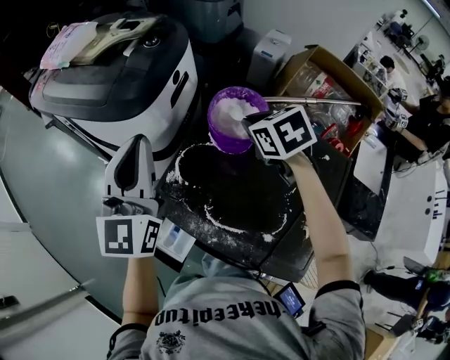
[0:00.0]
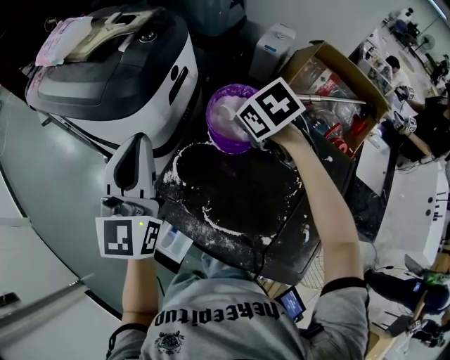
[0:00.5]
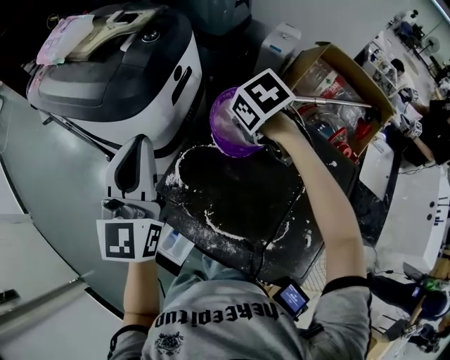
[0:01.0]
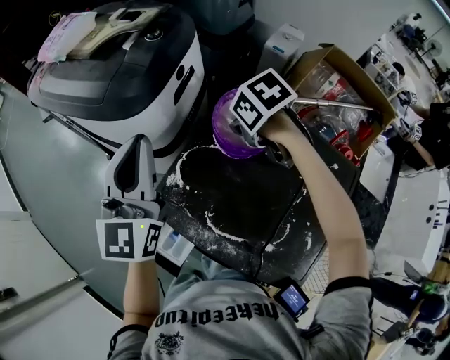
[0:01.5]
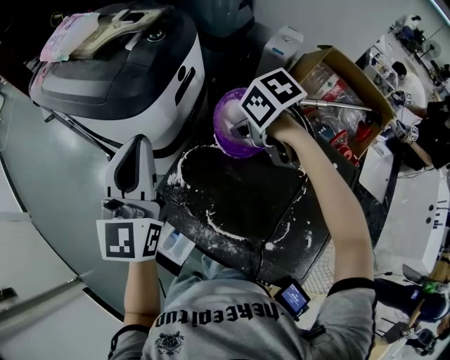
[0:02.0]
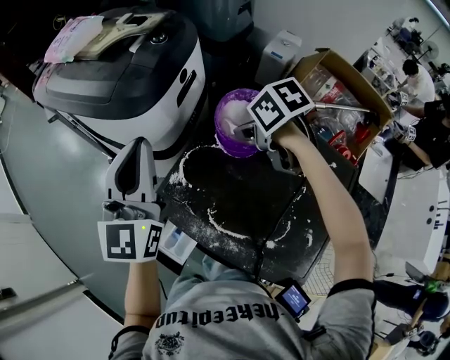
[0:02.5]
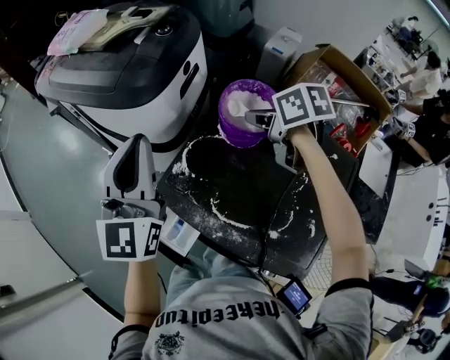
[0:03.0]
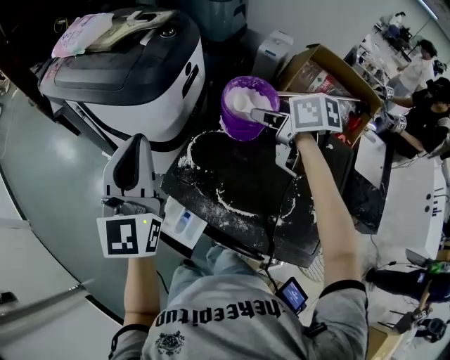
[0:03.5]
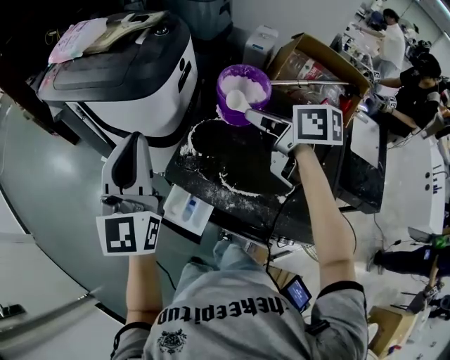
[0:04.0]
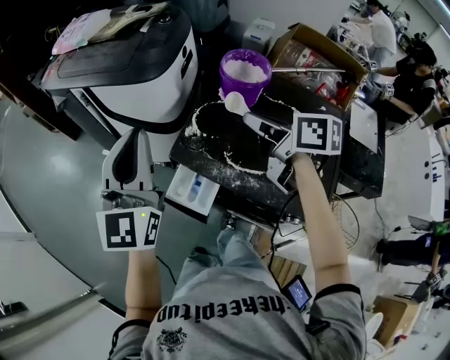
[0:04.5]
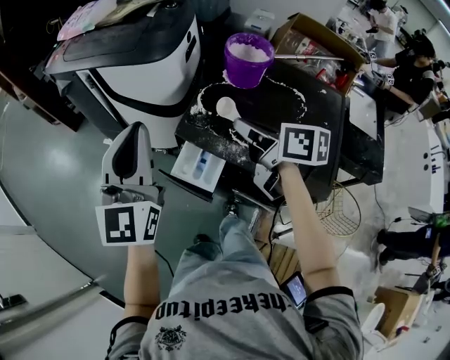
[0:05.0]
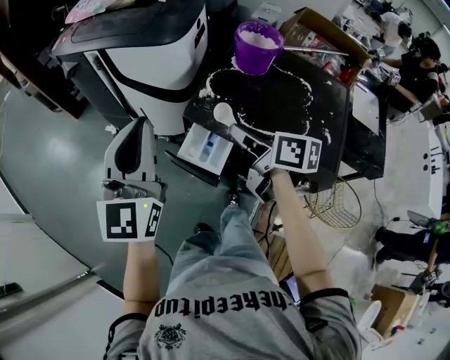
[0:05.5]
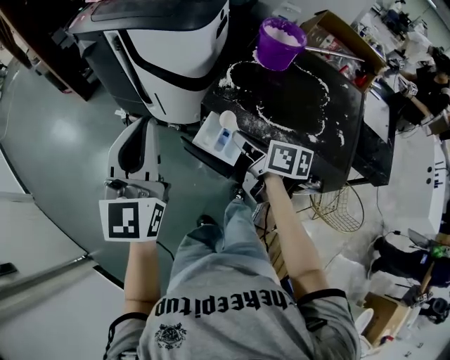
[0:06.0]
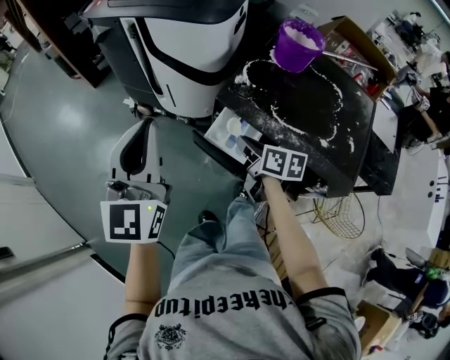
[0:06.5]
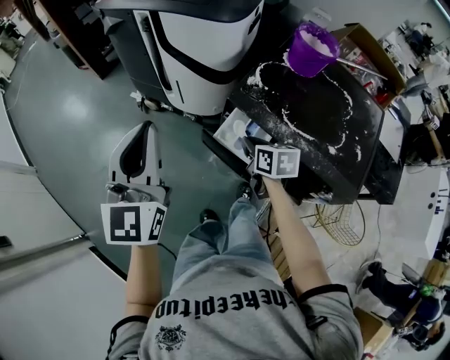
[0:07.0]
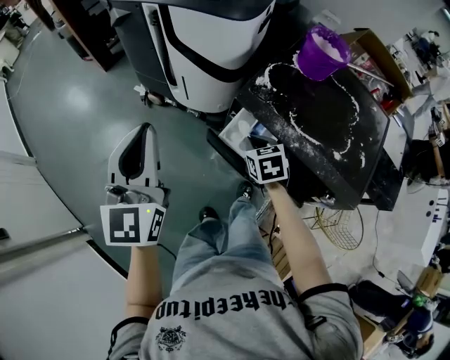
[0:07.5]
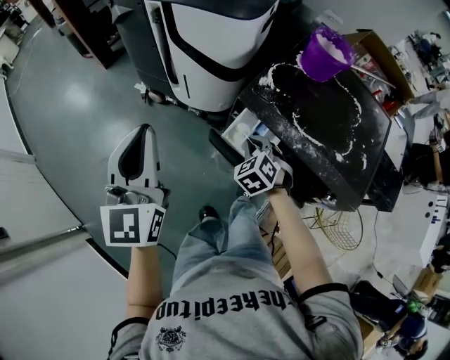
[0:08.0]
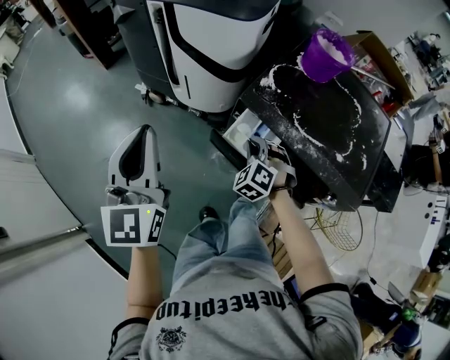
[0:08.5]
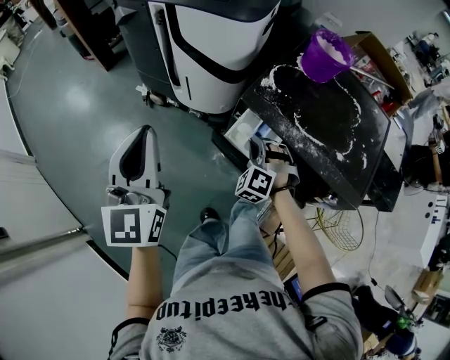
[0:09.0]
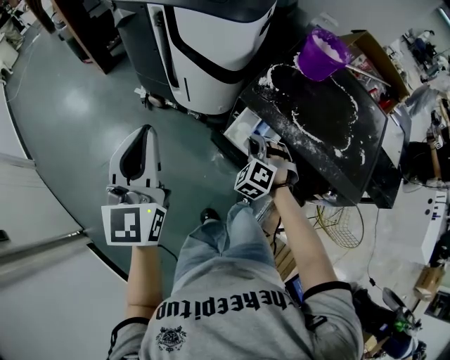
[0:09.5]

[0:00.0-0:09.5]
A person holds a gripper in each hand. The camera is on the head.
0.0 to 2.0 s: The right gripper ends up approximately 5 cm from where it was, and turns by approximately 30 degrees.
2.0 to 4.0 s: The left gripper goes some 15 cm to the left and backward. The right gripper goes about 15 cm backward, upward and to the left, and tips its fingers upward by about 40 degrees.
4.0 to 5.5 s: The right gripper shifts about 25 cm backward, to the left and downward. Meanwhile the left gripper moves backward and to the left, approximately 15 cm.
5.5 to 7.5 s: The left gripper moves to the left and downward, roughly 15 cm, while the right gripper moves downward and to the left, about 20 cm, and tips its fingers downward by approximately 30 degrees.
7.5 to 9.5 s: The right gripper twists some 60 degrees counterclockwise, seen from behind.

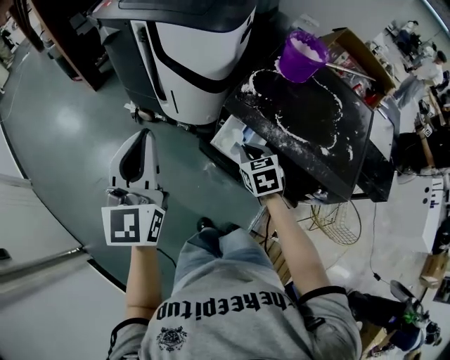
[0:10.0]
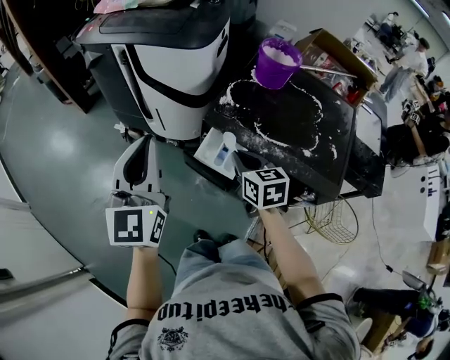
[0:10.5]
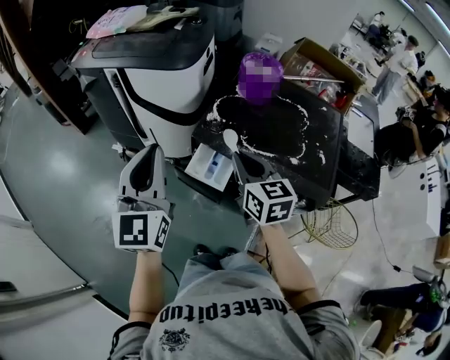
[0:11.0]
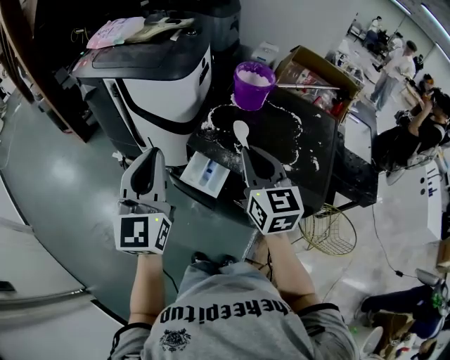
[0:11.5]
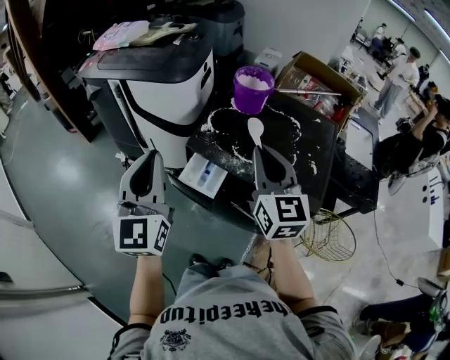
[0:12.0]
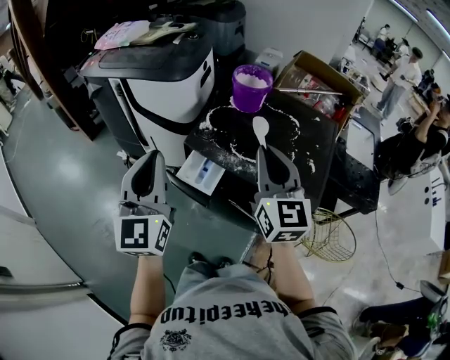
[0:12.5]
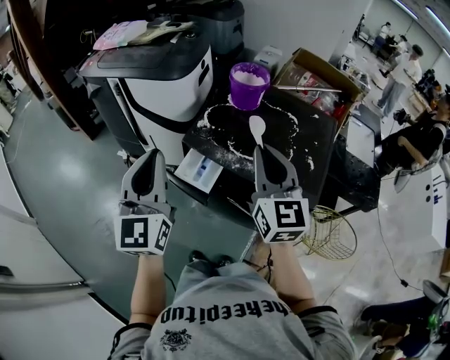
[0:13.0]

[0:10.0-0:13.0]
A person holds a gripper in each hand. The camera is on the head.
10.0 to 11.5 s: The left gripper shifts roughly 15 cm to the right and upward. Meanwhile the right gripper shifts approximately 25 cm upward, and angles its fingers upward, by some 40 degrees.
11.5 to 13.0 s: The right gripper travels to the right by approximately 5 cm. Meanwhile the left gripper shifts by about 5 cm.

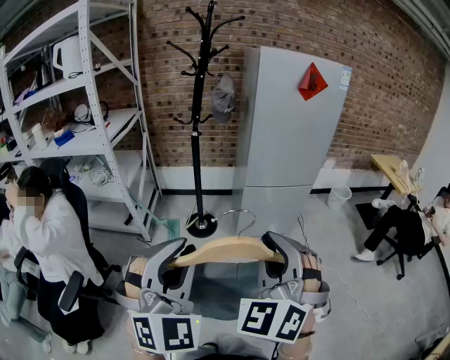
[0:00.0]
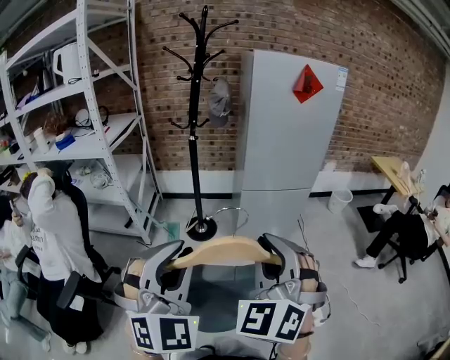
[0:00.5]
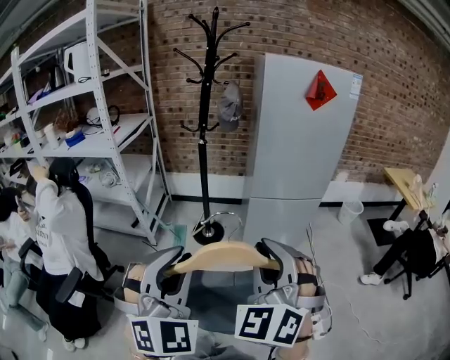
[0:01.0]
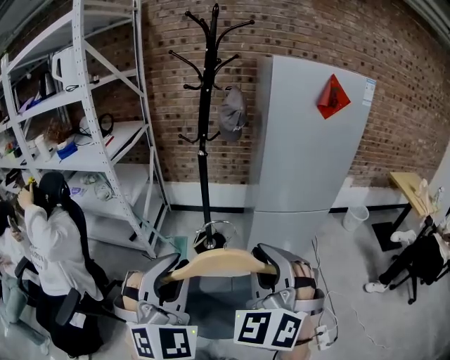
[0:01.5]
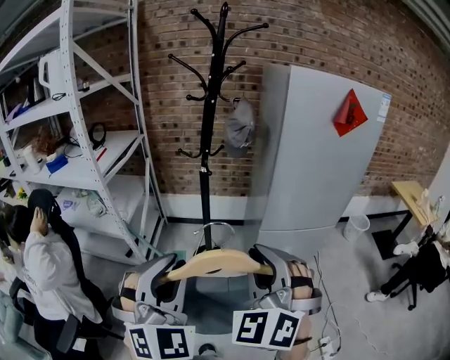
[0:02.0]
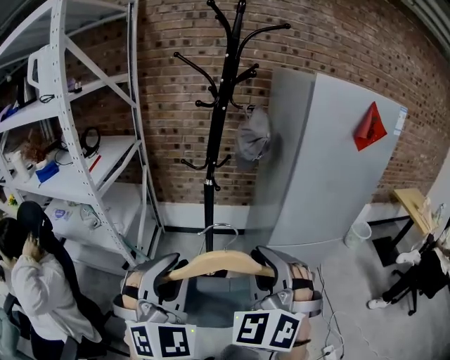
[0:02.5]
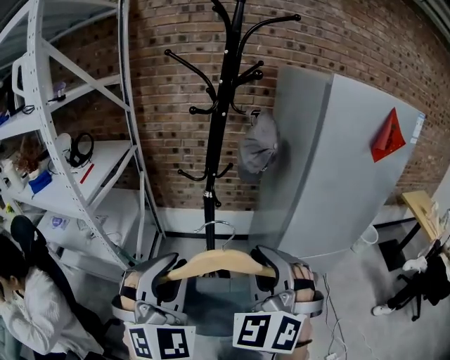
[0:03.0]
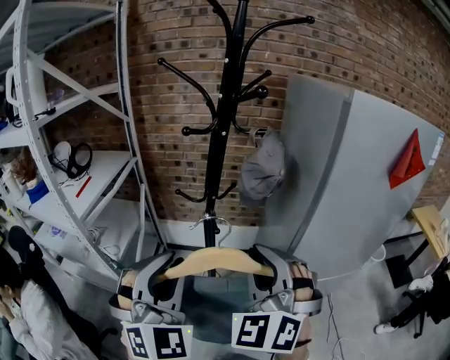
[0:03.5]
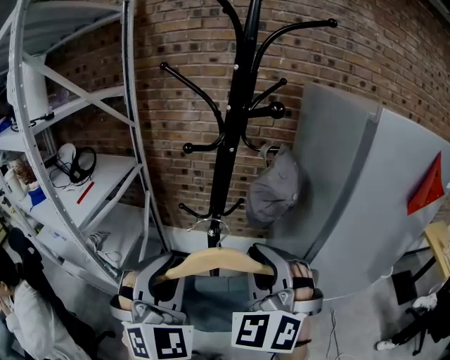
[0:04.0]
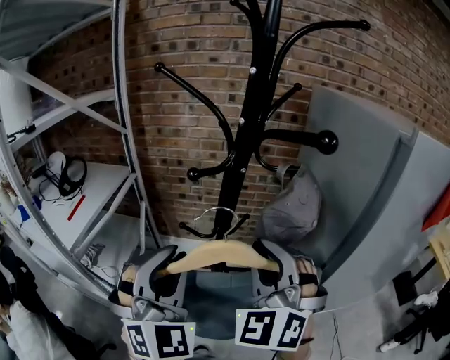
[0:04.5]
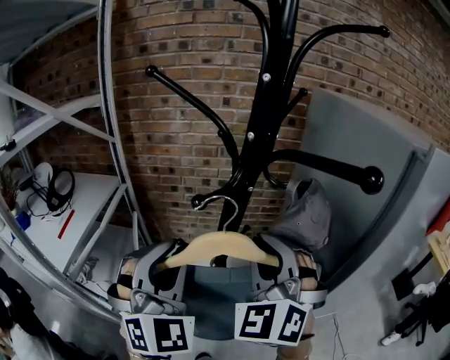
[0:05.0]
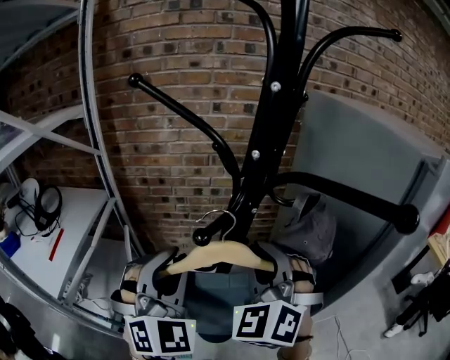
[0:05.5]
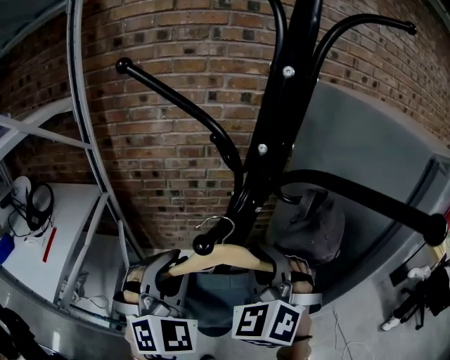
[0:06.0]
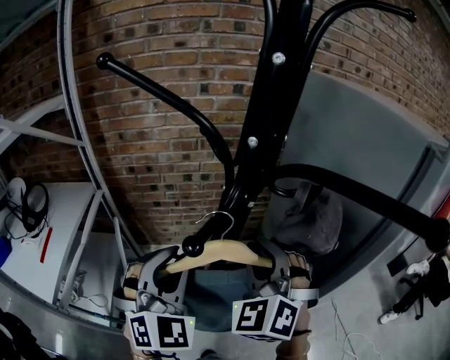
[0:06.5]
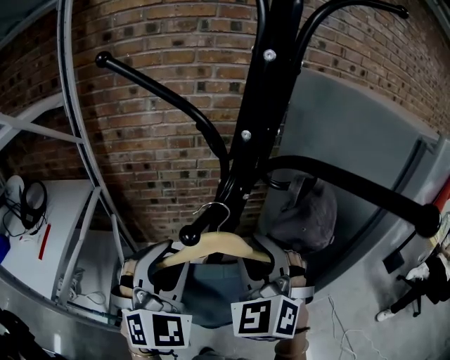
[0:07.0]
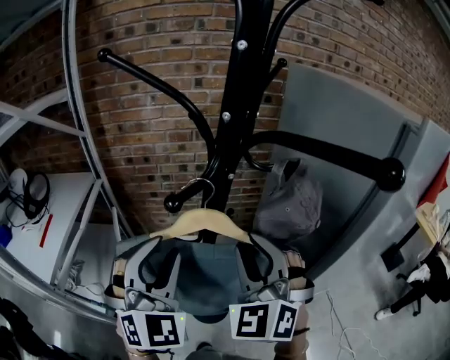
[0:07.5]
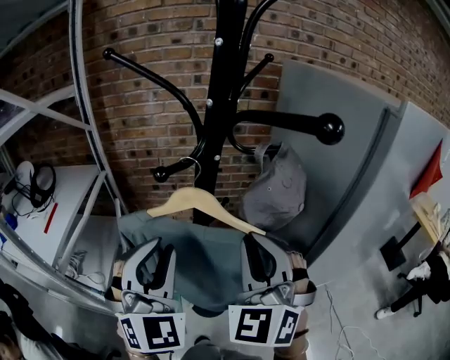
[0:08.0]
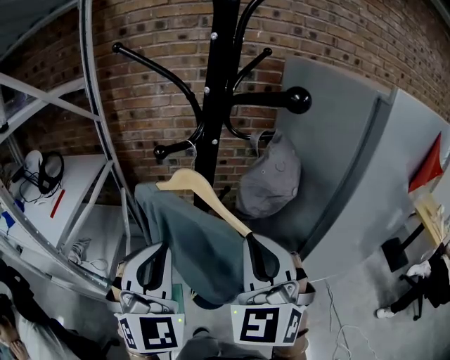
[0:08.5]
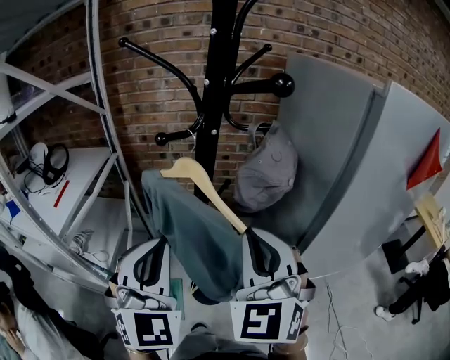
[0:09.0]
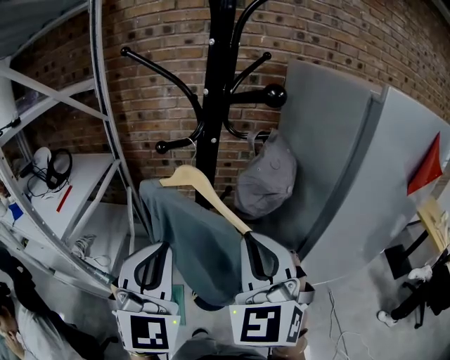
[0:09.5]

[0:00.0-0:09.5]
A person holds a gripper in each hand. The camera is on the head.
0.0 to 2.0 s: The grippers both shift forward by roughly 25 cm.
2.0 to 4.0 s: The two grippers go approximately 35 cm forward.
4.0 to 5.5 s: Both grippers travel together forward, some 20 cm.
5.5 to 7.5 s: The right gripper shifts by roughly 5 cm.
7.5 to 9.5 s: Both grippers move backward, about 10 cm. The left gripper closes its fingers. Meanwhile the right gripper closes up.

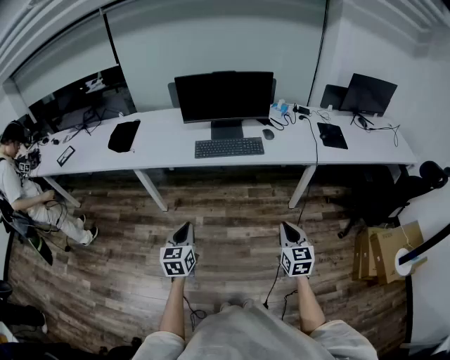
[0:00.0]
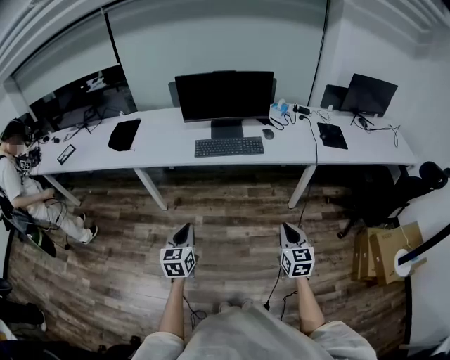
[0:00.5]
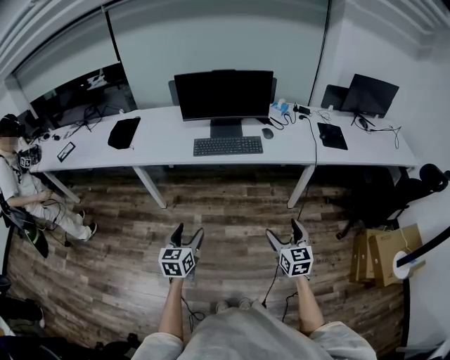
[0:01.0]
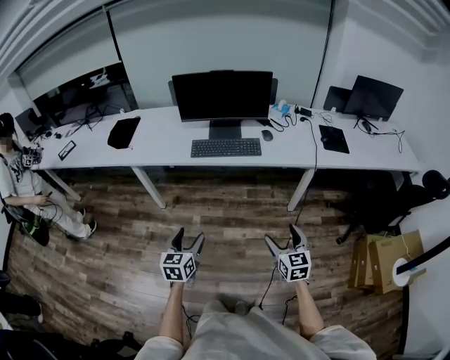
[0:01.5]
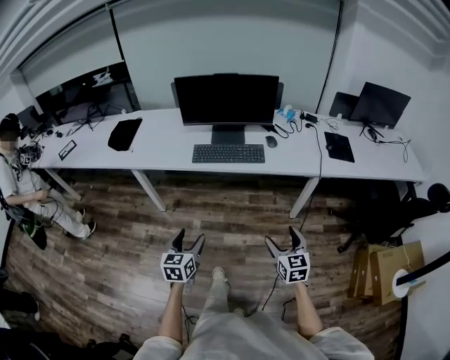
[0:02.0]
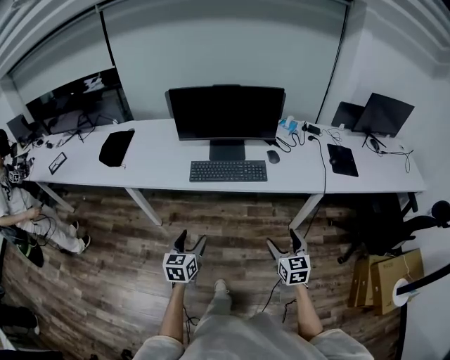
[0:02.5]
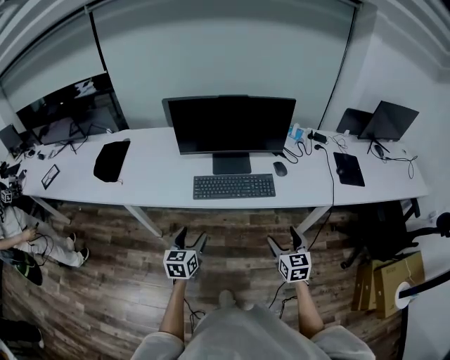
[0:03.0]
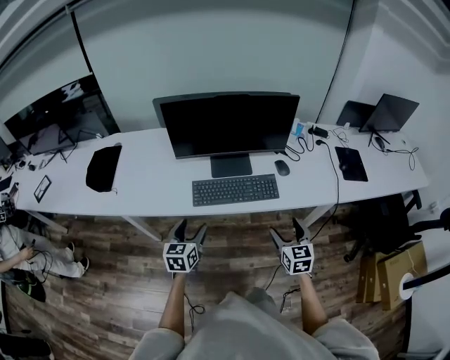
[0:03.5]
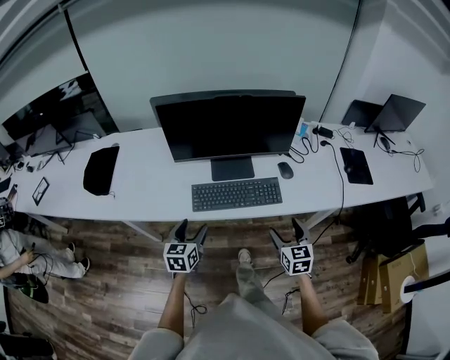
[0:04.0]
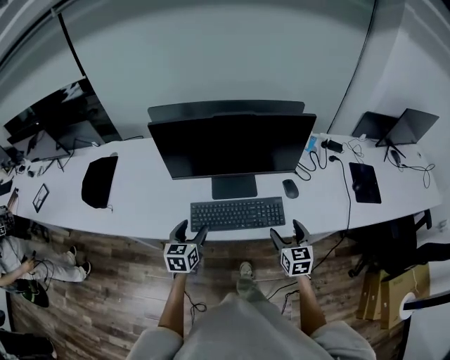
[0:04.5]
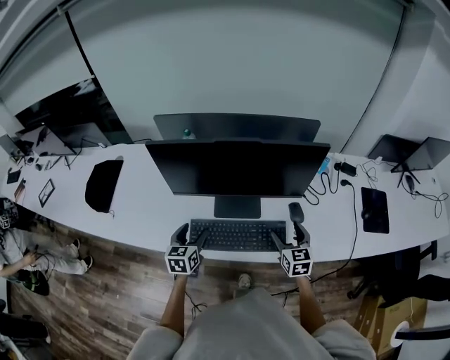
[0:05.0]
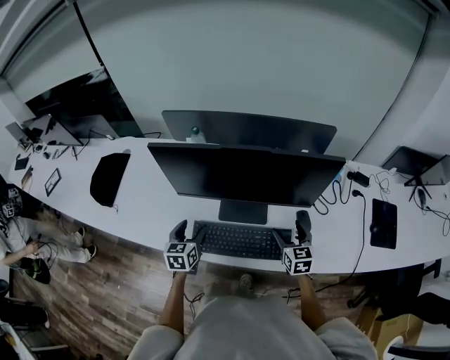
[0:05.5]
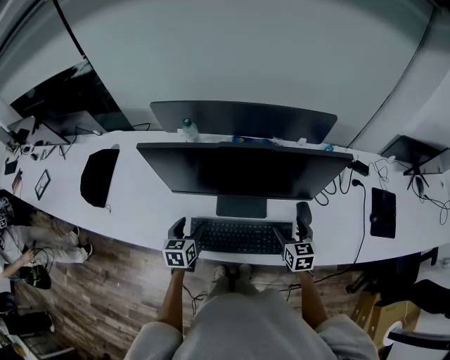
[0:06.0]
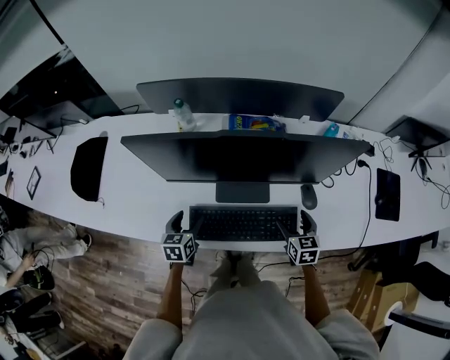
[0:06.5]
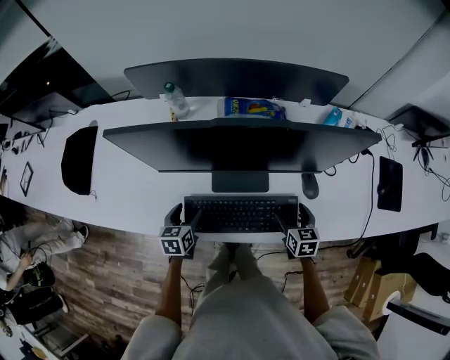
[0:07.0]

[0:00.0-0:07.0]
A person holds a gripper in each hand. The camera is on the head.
0.0 to 2.0 s: The right gripper moves forward, about 5 cm, and opens its fingers; the left gripper travels to the right by approximately 5 cm, and opens its fingers.
2.0 to 3.5 s: The grippers both shift forward by approximately 35 cm.
3.5 to 5.0 s: The grippers both shift forward by approximately 25 cm.
5.0 to 7.0 s: The grippers both shift downward by roughly 15 cm. The right gripper turns by roughly 20 degrees.
